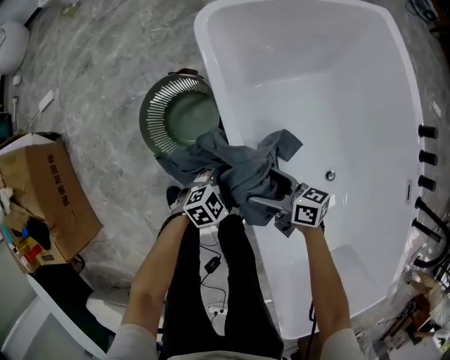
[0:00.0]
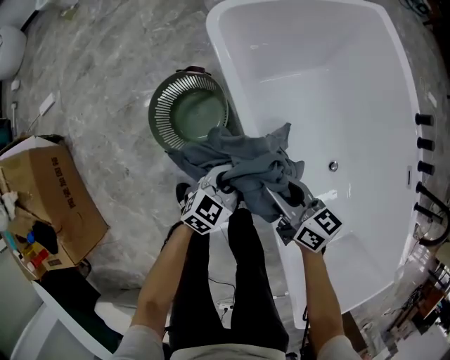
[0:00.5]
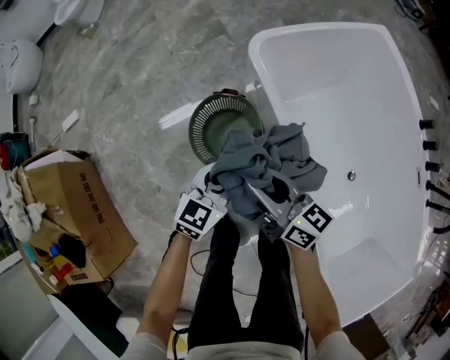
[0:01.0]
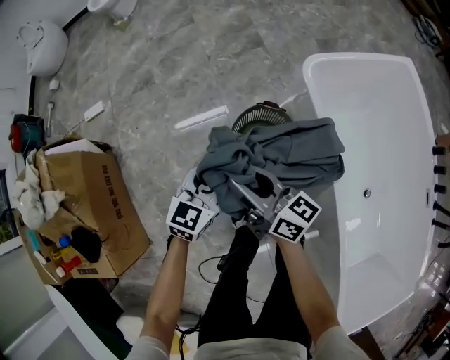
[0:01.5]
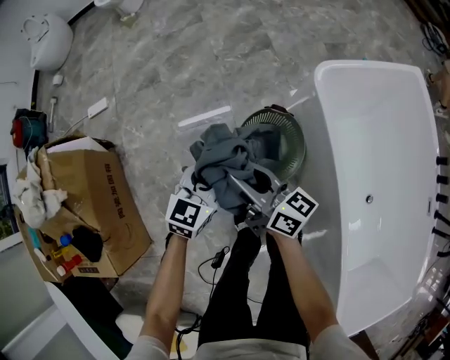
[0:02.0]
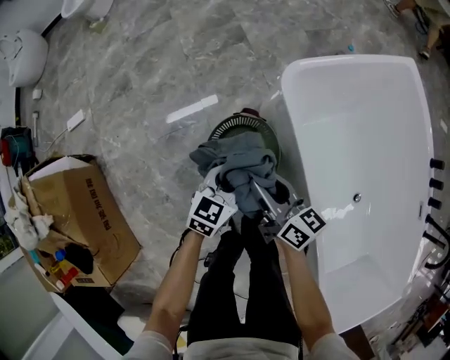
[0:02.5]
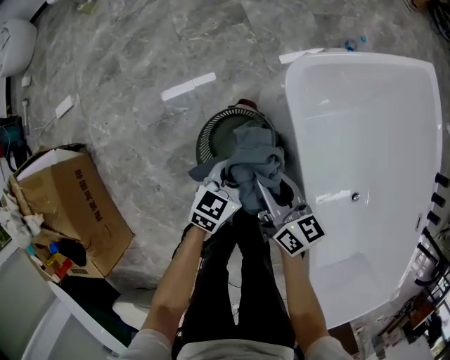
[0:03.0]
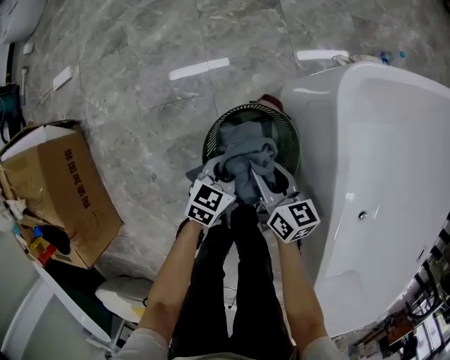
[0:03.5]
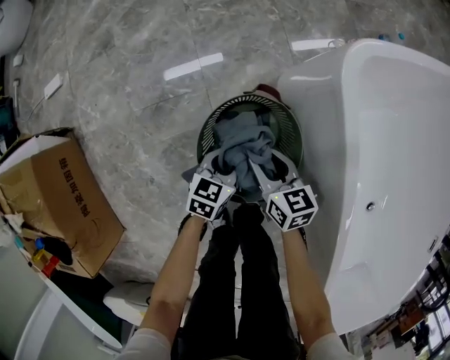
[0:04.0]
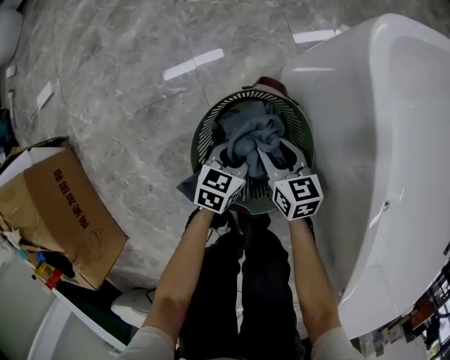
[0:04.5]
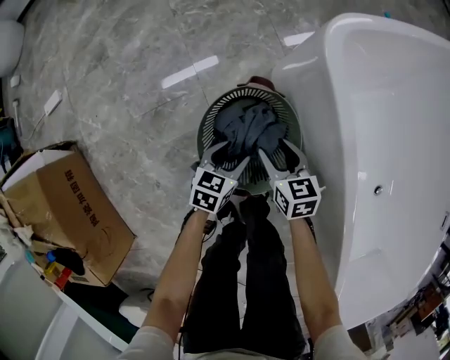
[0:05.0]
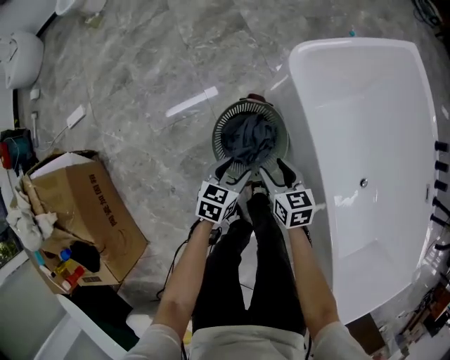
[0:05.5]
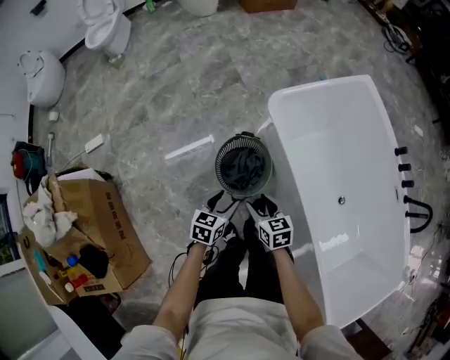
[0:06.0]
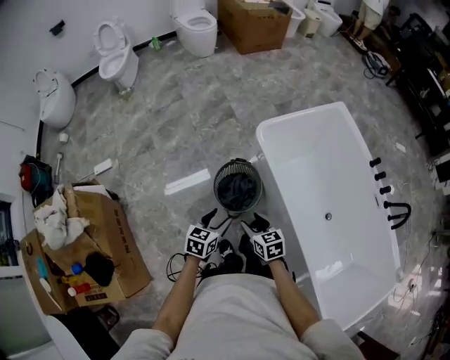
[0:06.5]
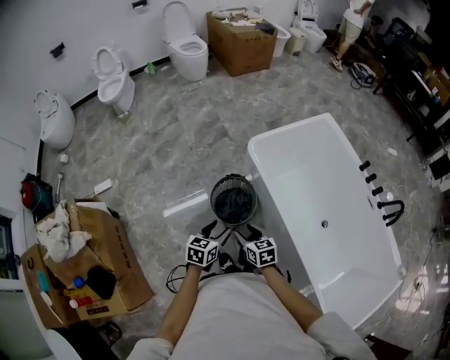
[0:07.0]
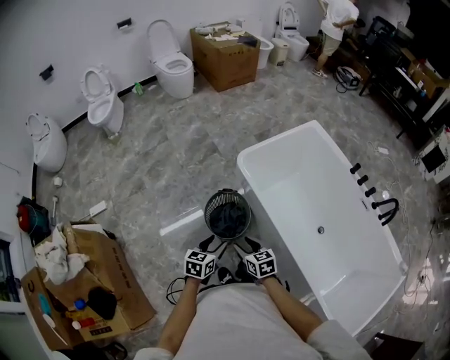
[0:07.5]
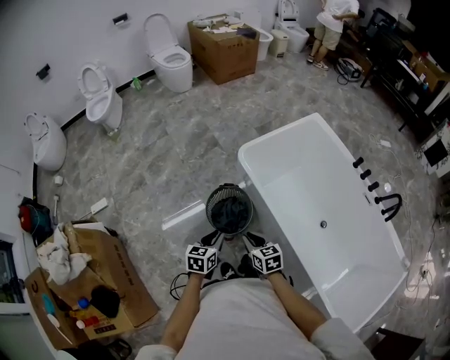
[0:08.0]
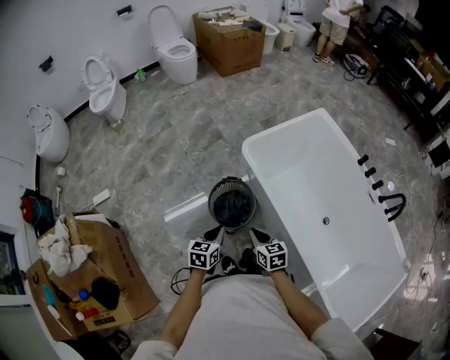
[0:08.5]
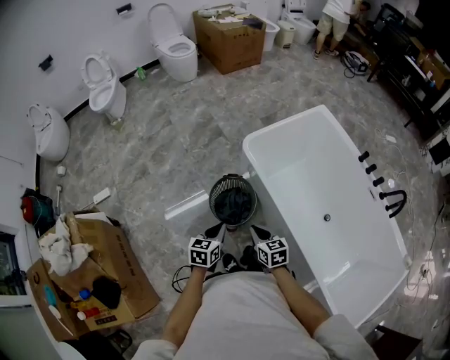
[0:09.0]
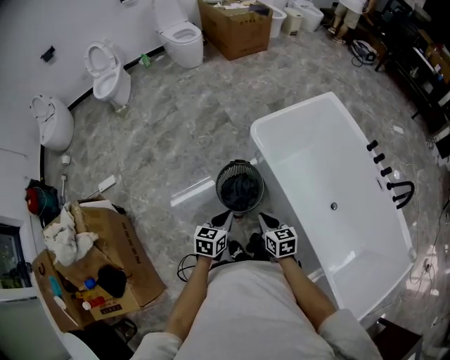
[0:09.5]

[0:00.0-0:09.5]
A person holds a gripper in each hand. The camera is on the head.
0:00.0 to 0:02.0: The pair of grippers is taken approximately 40 cm. The left gripper turns by some 50 degrees, and closes its fingers, while the right gripper swivels some 30 degrees, and closes its fingers.
0:02.0 to 0:04.0: The two grippers go some 35 cm downward and to the right. The right gripper angles its fingers downward, by approximately 30 degrees; the left gripper changes its angle by roughly 20 degrees.
0:04.0 to 0:05.5: The two grippers go about 15 cm upward and backward.
0:05.5 to 0:07.5: The two grippers go some 35 cm upward and backward.
0:07.5 to 0:09.5: The right gripper closes, while the left gripper closes.

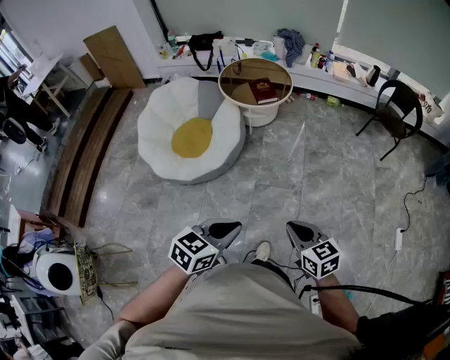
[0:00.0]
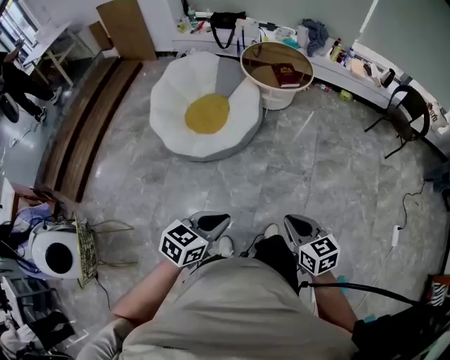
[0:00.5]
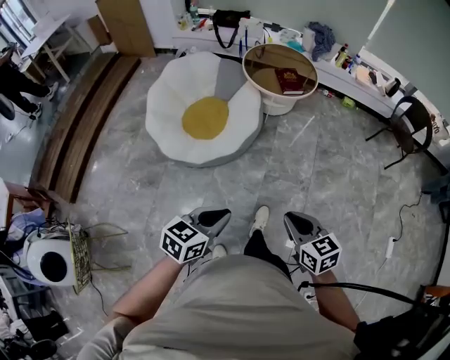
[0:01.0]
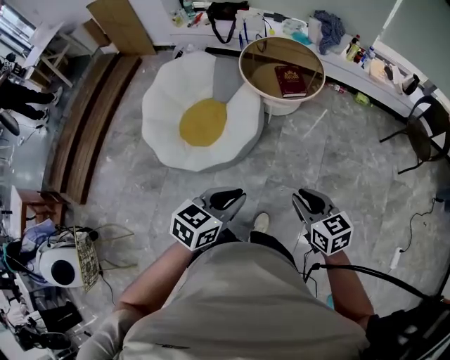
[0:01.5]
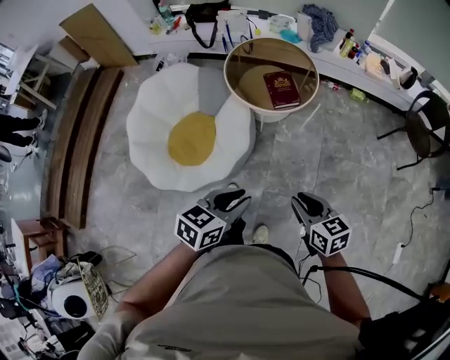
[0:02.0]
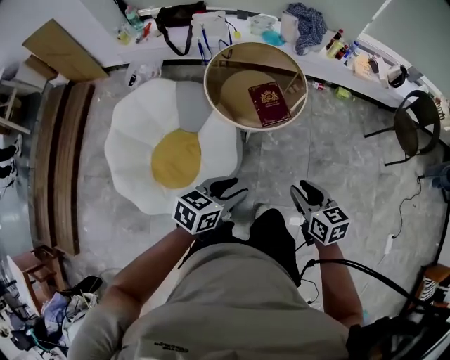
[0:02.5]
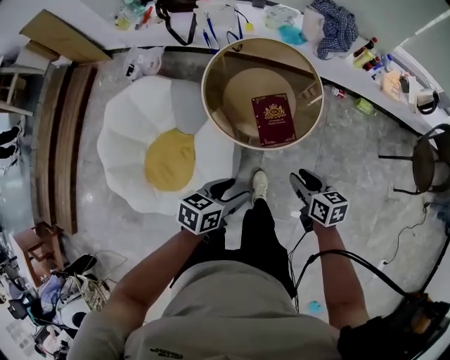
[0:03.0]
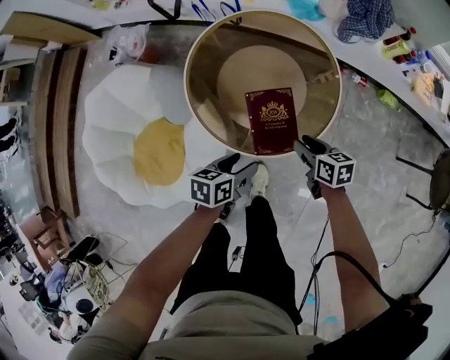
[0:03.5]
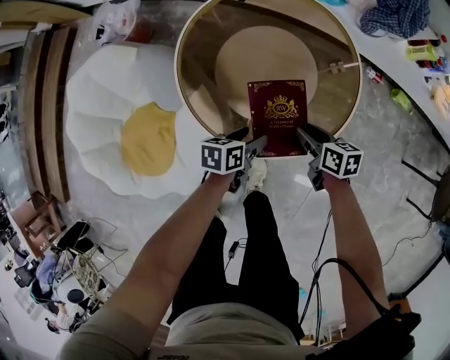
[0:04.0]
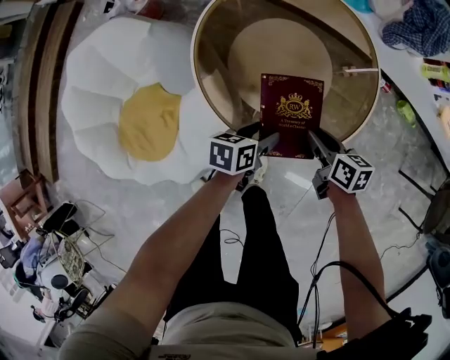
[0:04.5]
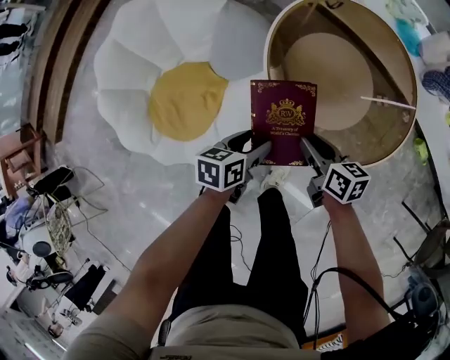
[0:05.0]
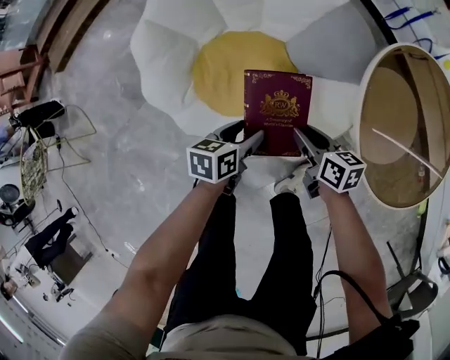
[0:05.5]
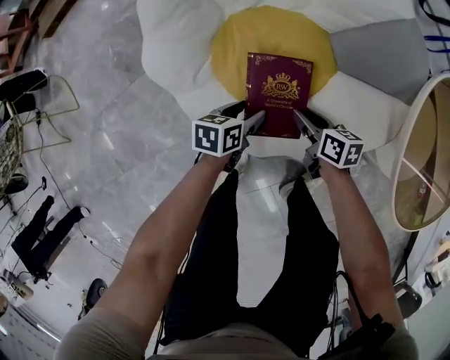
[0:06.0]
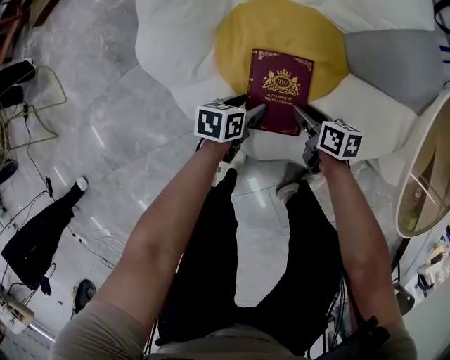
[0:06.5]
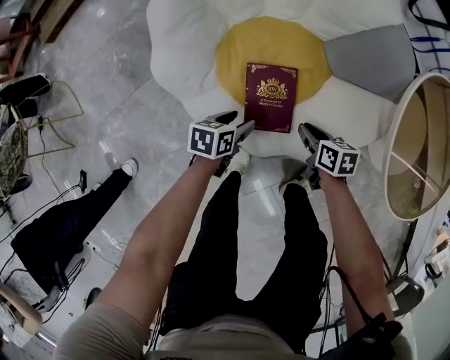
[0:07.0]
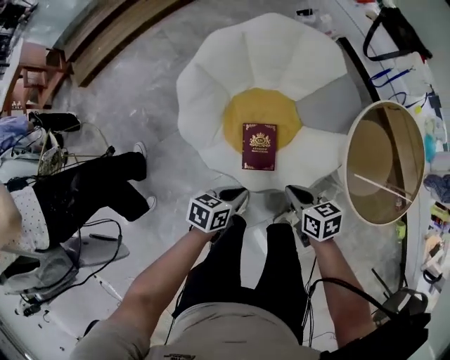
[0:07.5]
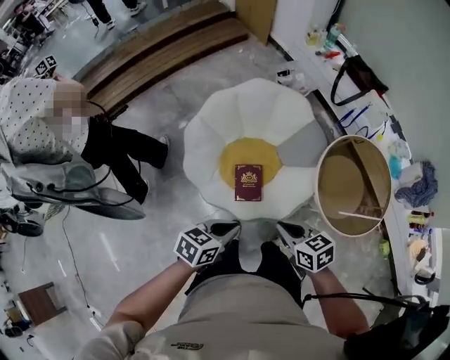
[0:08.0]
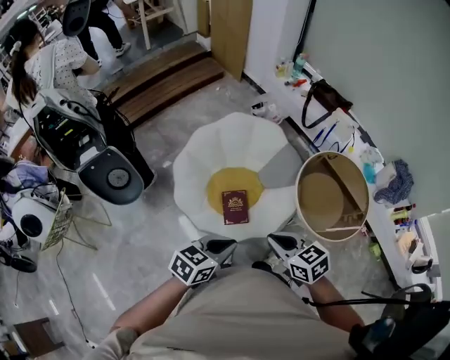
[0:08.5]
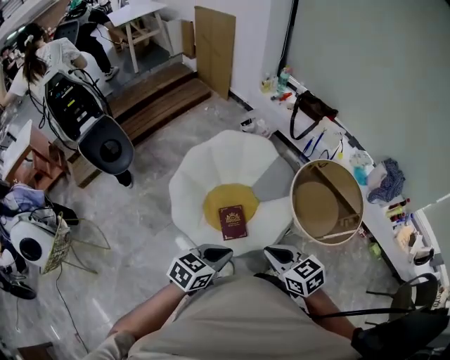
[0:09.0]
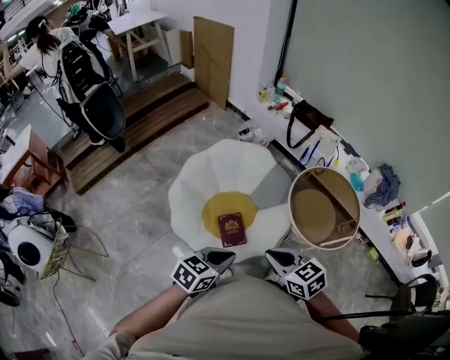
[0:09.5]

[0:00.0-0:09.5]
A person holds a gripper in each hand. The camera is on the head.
0:00.0 to 0:02.0: Both grippers travel together forward, some 40 cm.
0:02.0 to 0:04.0: Both grippers are carried forward, about 60 cm. Both grippers travel together downward, about 40 cm. The left gripper rotates approximately 40 degrees, and opens its fingers. The right gripper changes its angle by some 30 degrees.
0:04.0 to 0:05.5: The two grippers travel together, roughly 40 cm. The left gripper rotates some 40 degrees. Meanwhile the right gripper swivels about 30 degrees.
0:05.5 to 0:07.5: Both grippers move upward, to the left and backward, roughly 20 cm. The left gripper closes up. Meanwhile the right gripper closes its fingers.
0:07.5 to 0:09.5: The two grippers go some 35 cm upward. The right gripper rotates approximately 30 degrees; the left gripper changes its angle by some 40 degrees.

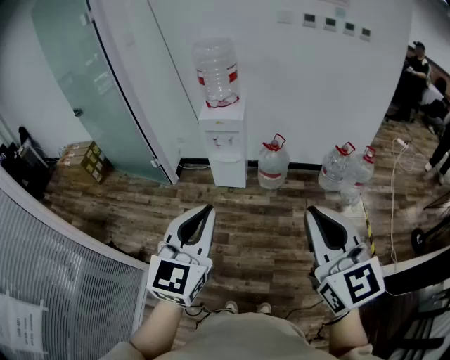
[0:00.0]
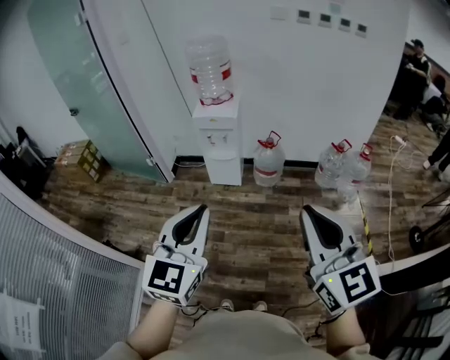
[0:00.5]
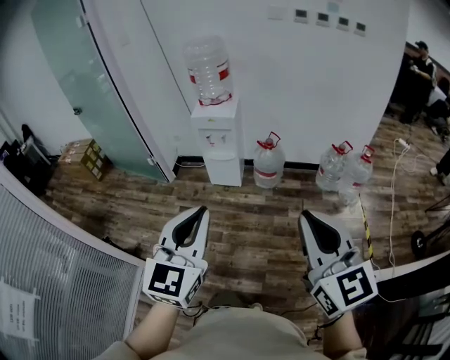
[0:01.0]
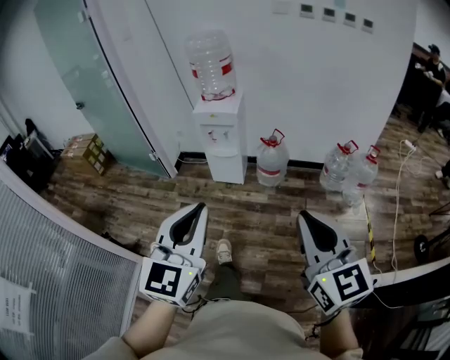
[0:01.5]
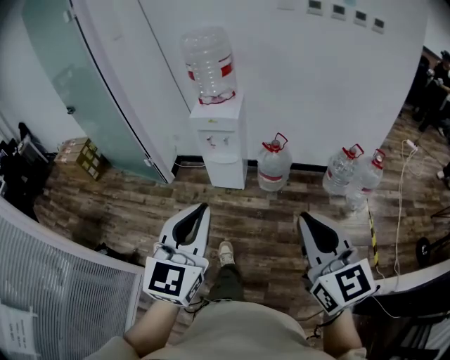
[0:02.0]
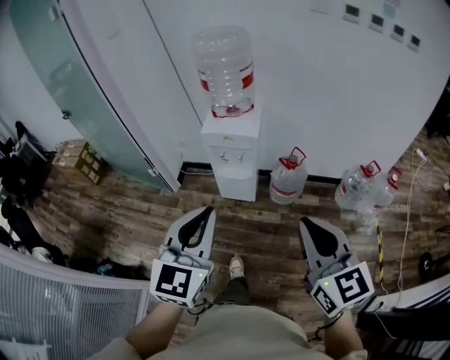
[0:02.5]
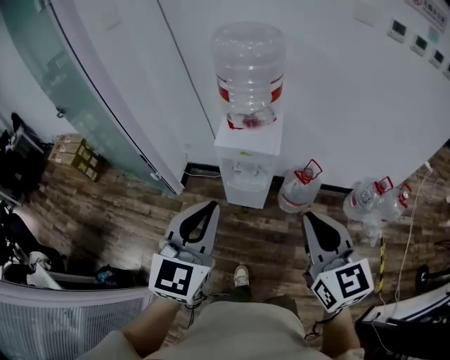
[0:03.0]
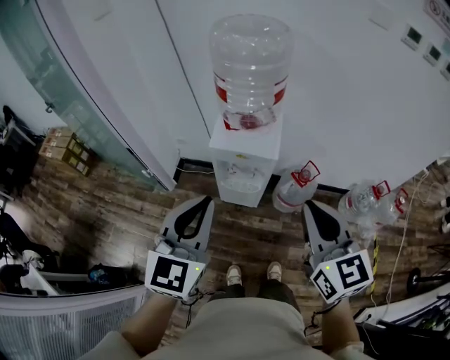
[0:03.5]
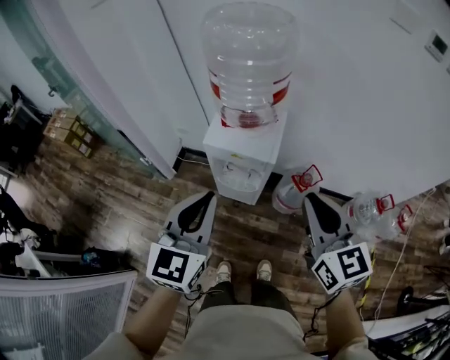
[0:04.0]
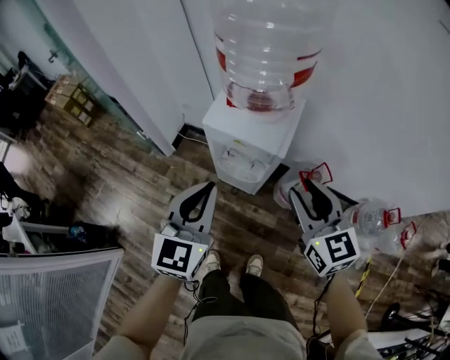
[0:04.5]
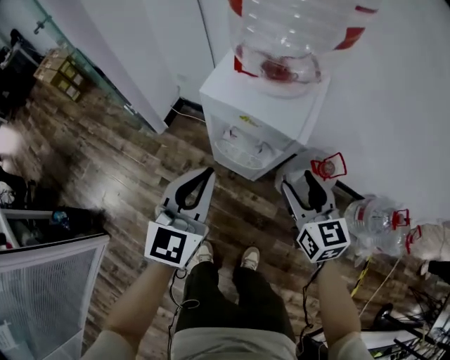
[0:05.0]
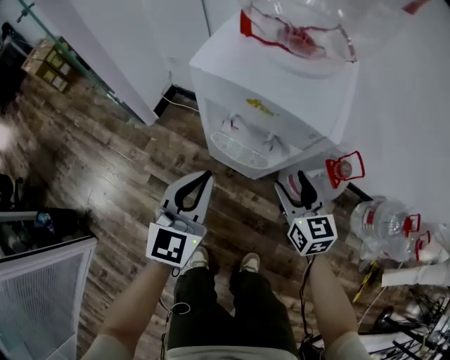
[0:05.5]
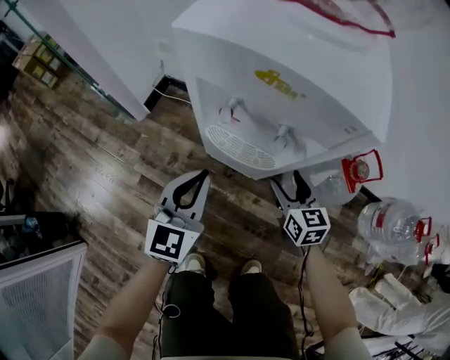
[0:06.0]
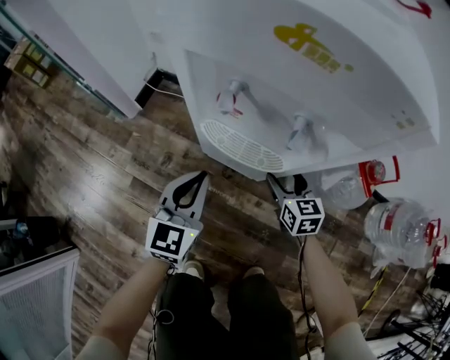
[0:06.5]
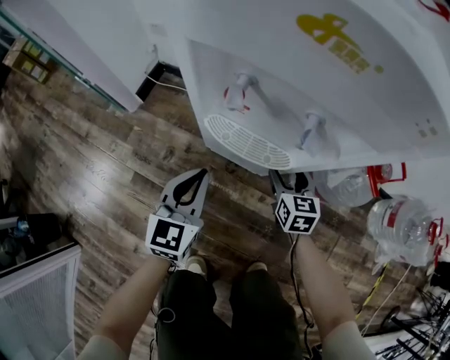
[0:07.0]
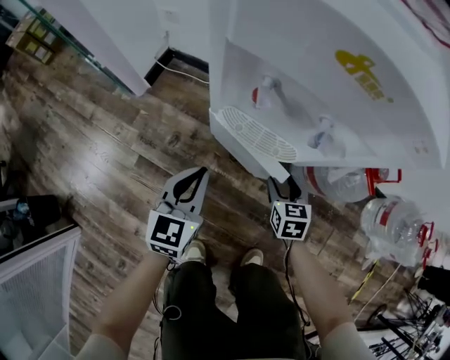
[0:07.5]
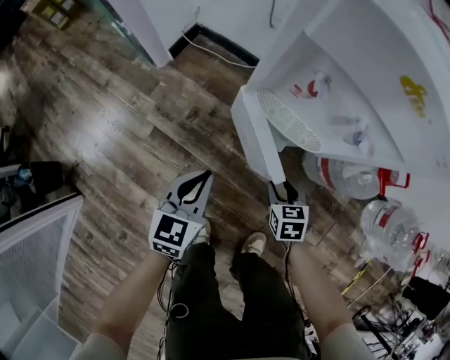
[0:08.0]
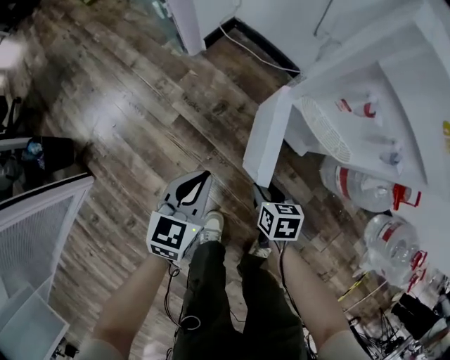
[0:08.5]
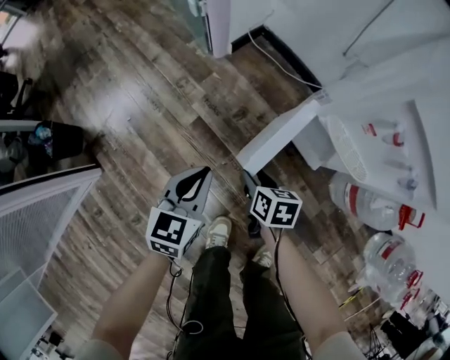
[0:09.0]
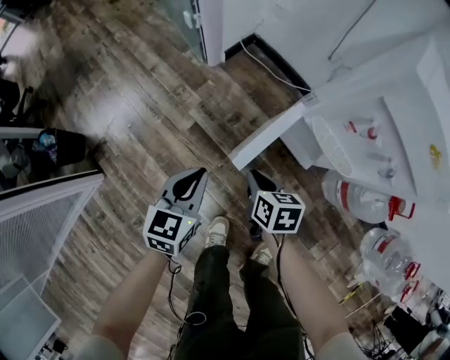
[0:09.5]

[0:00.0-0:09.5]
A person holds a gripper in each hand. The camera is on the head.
0:00.0 to 0:02.0: The left gripper heads forward and to the right, covering approximately 15 cm, while the right gripper heads forward, downward and to the right, covering some 15 cm.
0:02.0 to 0:04.0: The two grippers travel together, forward, roughly 50 cm.
0:04.0 to 0:05.5: The grippers both shift downward by roughly 40 cm. The right gripper opens its fingers.
0:05.5 to 0:07.5: The grippers both shift downward by roughly 25 cm. The right gripper changes its angle by approximately 20 degrees.
0:07.5 to 0:09.5: The right gripper ends up roughly 35 cm from where it was, changes its angle by roughly 30 degrees, and closes up. Meanwhile the left gripper shifts by approximately 25 cm, and swivels about 20 degrees.
